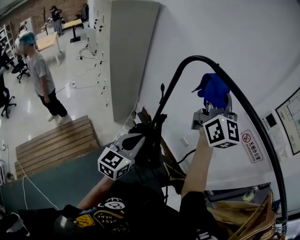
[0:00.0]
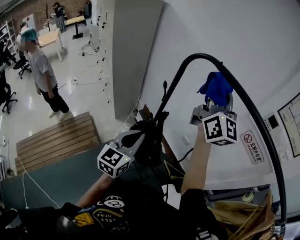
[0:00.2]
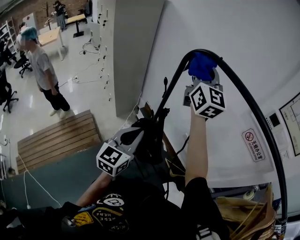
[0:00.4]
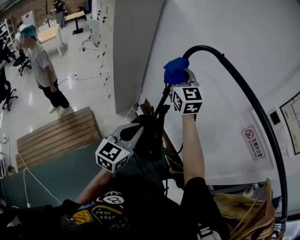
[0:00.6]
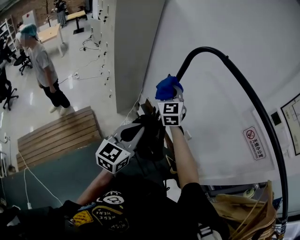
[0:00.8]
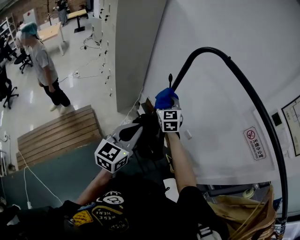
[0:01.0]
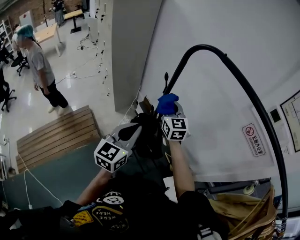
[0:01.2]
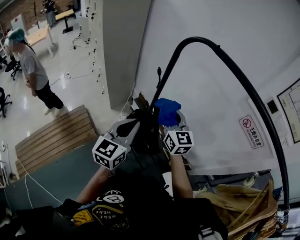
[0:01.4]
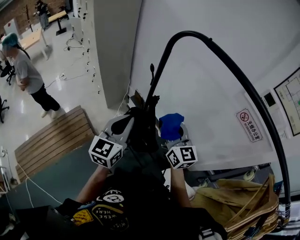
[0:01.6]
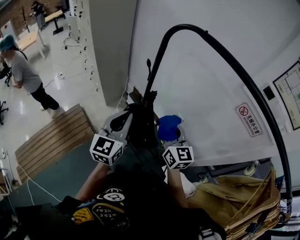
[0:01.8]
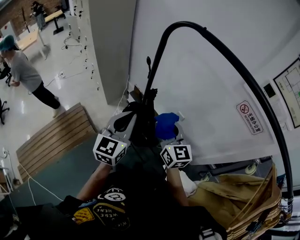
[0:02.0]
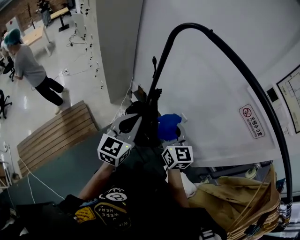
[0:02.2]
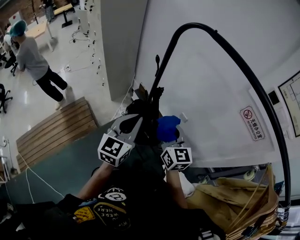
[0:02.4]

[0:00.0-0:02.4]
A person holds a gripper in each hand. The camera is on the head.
0:00.0 to 0:01.2: The right gripper moves downward, approximately 30 cm, and angles its fingers downward, by some 30 degrees.
0:01.2 to 0:02.4: The right gripper travels backward and to the right by approximately 15 cm.

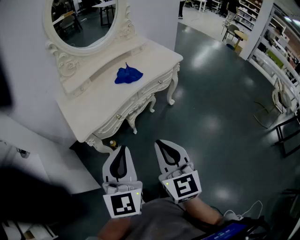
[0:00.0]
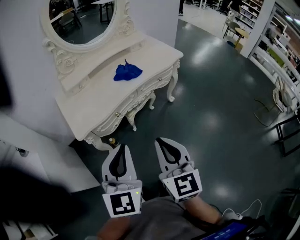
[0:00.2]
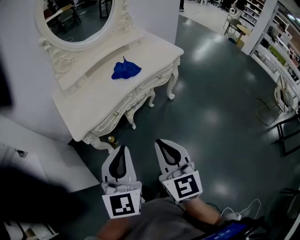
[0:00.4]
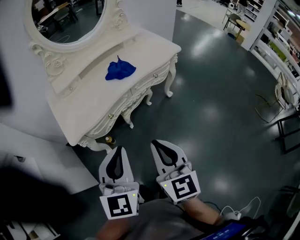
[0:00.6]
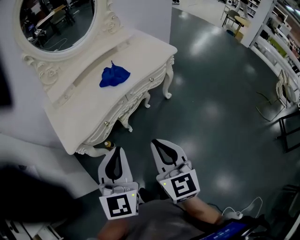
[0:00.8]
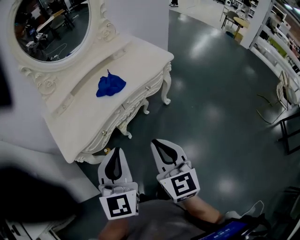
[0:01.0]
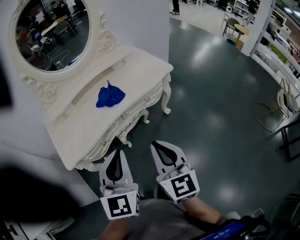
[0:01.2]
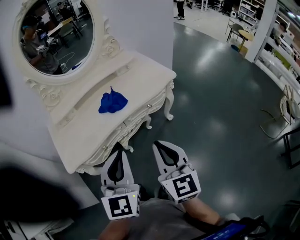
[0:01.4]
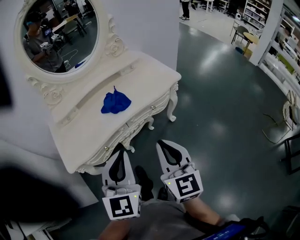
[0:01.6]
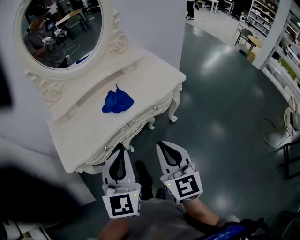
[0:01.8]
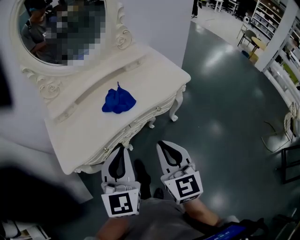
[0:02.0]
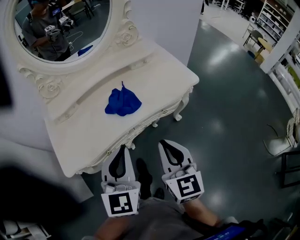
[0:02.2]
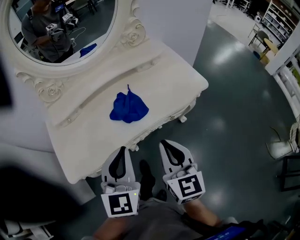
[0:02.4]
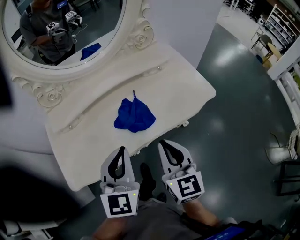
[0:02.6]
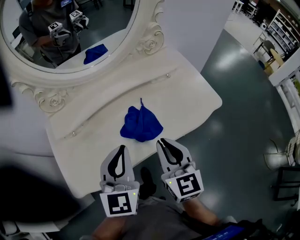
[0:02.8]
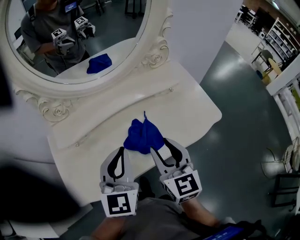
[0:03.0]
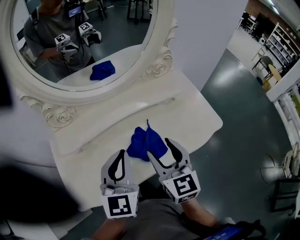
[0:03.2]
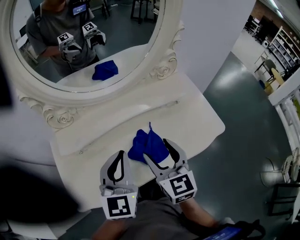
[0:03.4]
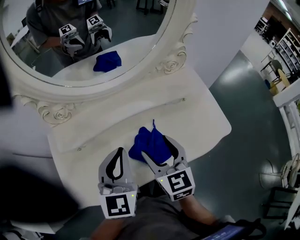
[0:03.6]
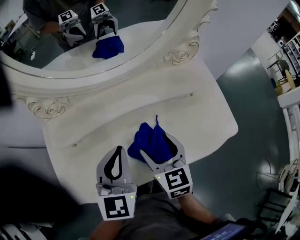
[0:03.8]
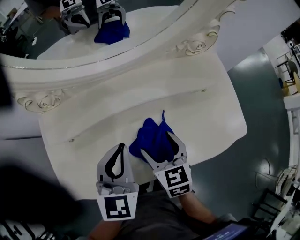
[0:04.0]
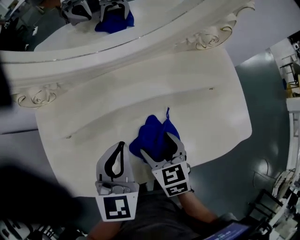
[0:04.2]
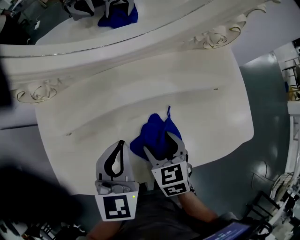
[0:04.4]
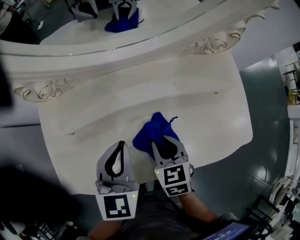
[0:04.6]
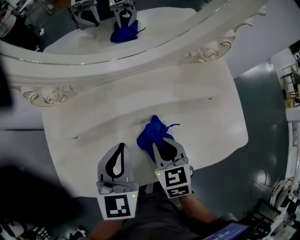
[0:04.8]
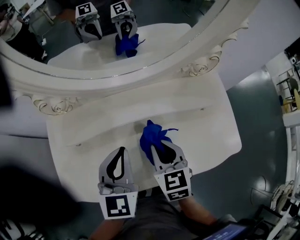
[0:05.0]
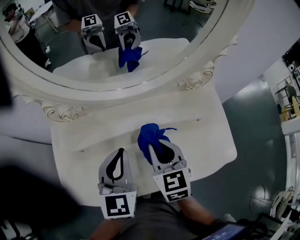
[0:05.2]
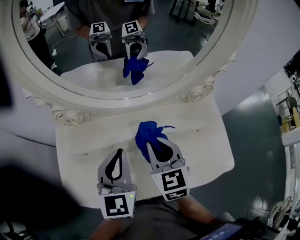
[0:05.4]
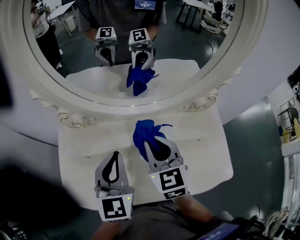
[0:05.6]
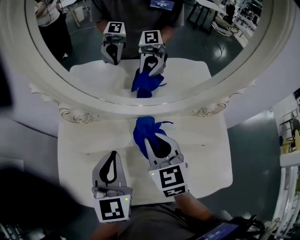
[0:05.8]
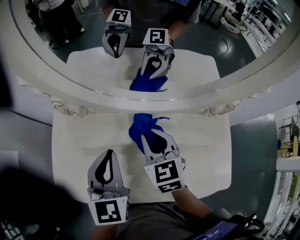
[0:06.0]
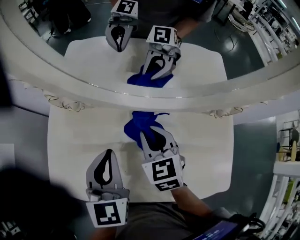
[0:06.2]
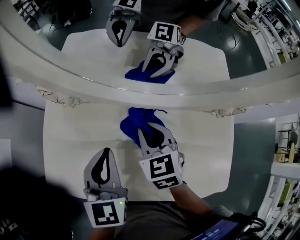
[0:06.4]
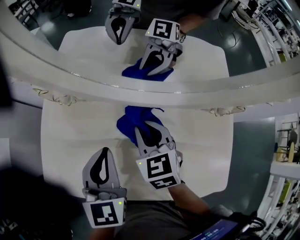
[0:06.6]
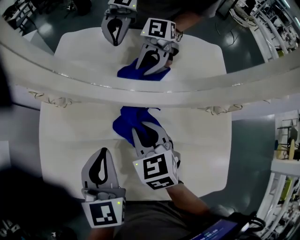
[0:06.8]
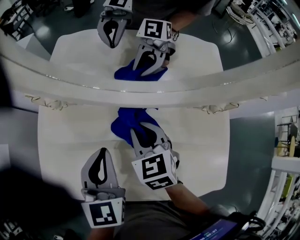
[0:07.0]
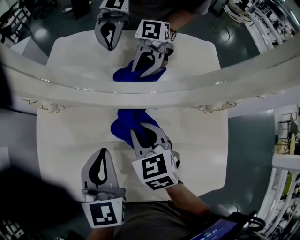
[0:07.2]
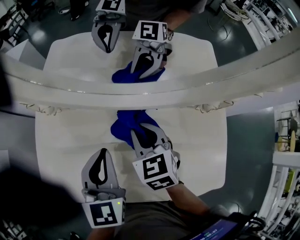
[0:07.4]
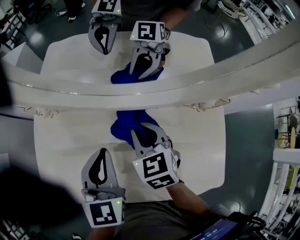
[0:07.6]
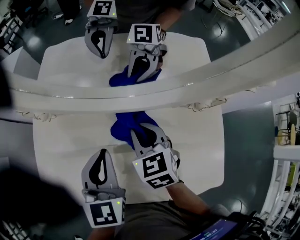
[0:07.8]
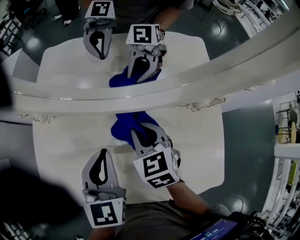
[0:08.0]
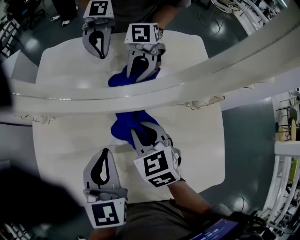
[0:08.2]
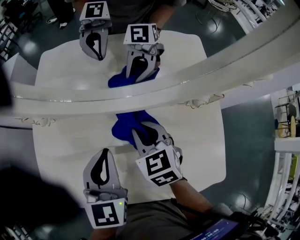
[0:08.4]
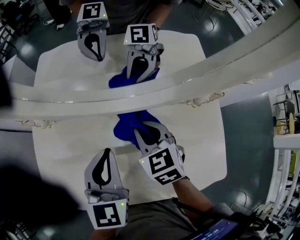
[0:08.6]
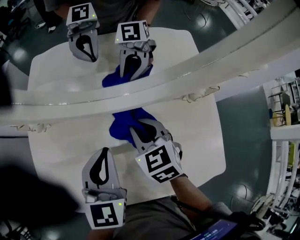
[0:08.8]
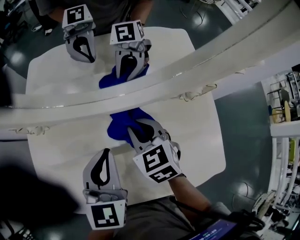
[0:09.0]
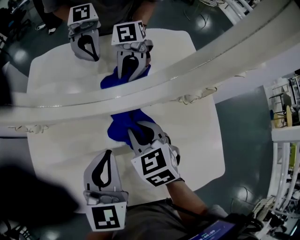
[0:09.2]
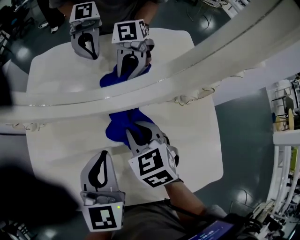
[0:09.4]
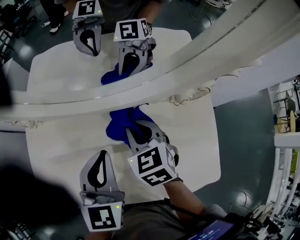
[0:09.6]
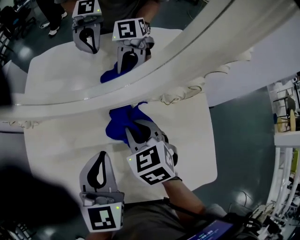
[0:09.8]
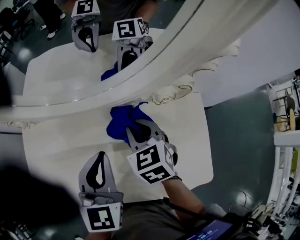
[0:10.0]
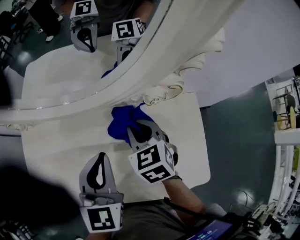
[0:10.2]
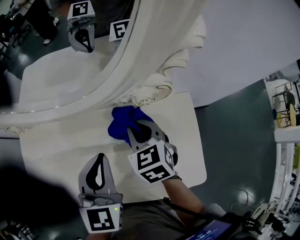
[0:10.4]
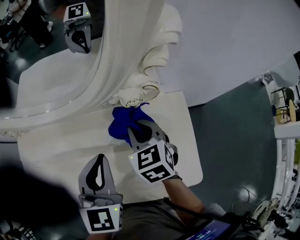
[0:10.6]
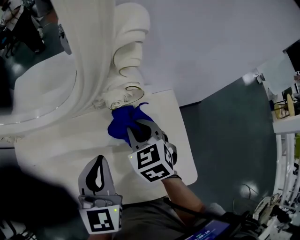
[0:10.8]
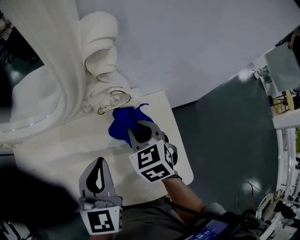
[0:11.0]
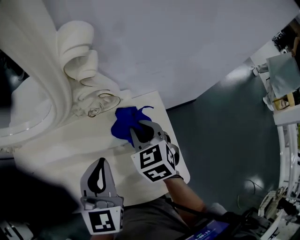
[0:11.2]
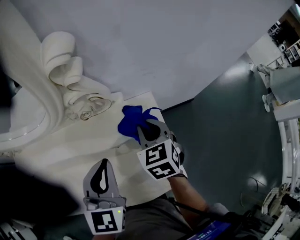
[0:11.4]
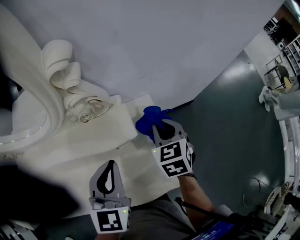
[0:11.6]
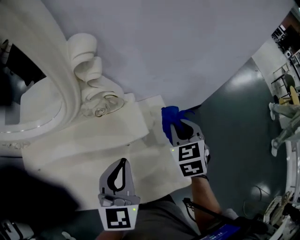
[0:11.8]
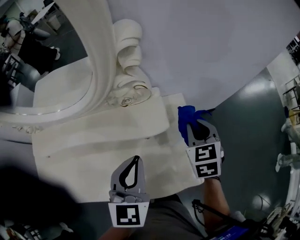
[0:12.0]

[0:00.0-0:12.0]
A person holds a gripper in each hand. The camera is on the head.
0:00.0 to 0:01.6: Both grippers move forward and to the right, approximately 25 cm.
0:01.6 to 0:03.0: Both grippers travel together forward, about 30 cm.
0:03.0 to 0:04.4: The two grippers go approximately 20 cm downward and forward. The right gripper tips its fingers downward by approximately 30 degrees, and opens up. Meanwhile the left gripper rotates roughly 20 degrees.
0:04.4 to 0:06.0: The right gripper travels forward and upward by roughly 20 cm, turns by roughly 30 degrees, and closes its fingers. Meanwhile the left gripper moves upward and forward, about 10 cm, and swivels some 20 degrees.
0:06.0 to 0:09.0: The grippers stay close to where they were, moving slightly.
0:09.0 to 0:10.4: The grippers move only a little.
0:10.4 to 0:12.0: The left gripper moves to the right, approximately 15 cm; the right gripper goes some 25 cm to the right, and changes its angle by roughly 20 degrees.

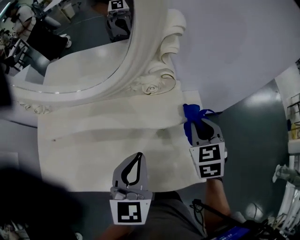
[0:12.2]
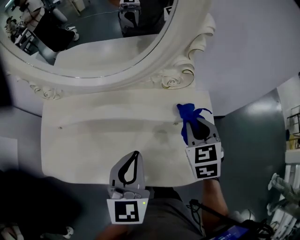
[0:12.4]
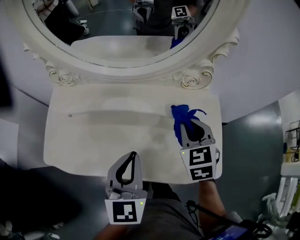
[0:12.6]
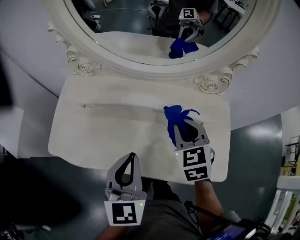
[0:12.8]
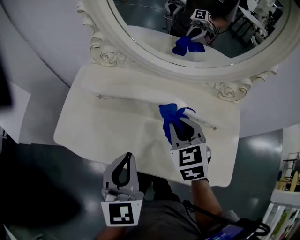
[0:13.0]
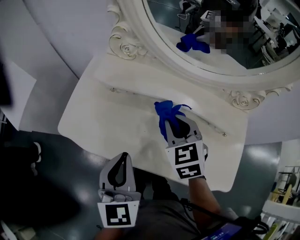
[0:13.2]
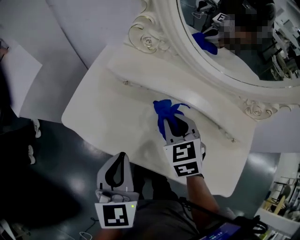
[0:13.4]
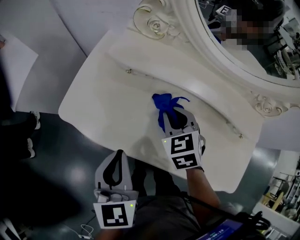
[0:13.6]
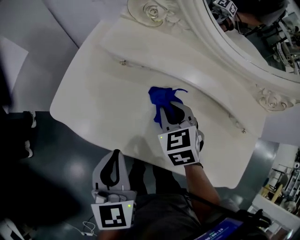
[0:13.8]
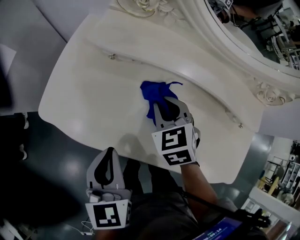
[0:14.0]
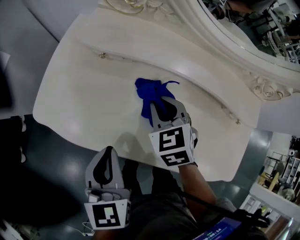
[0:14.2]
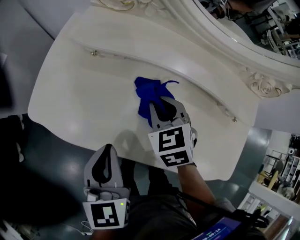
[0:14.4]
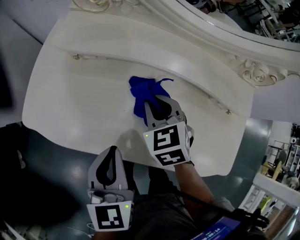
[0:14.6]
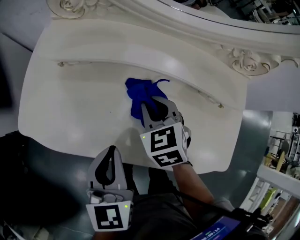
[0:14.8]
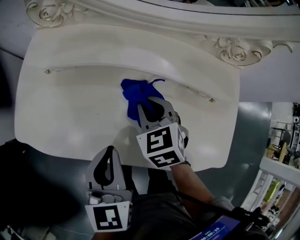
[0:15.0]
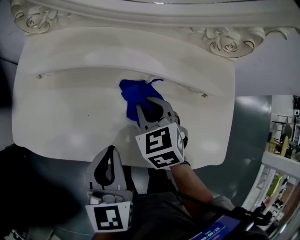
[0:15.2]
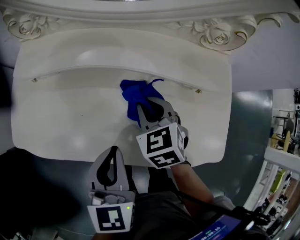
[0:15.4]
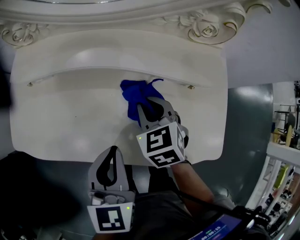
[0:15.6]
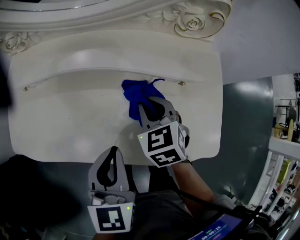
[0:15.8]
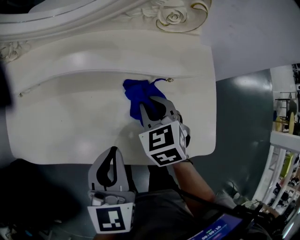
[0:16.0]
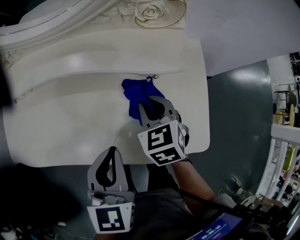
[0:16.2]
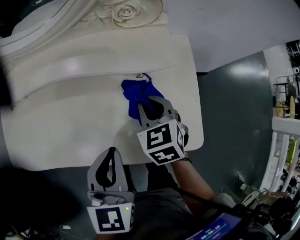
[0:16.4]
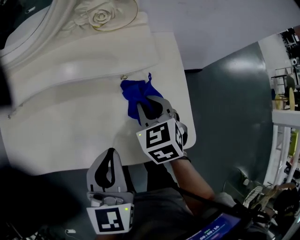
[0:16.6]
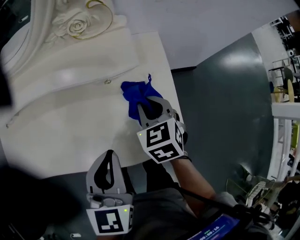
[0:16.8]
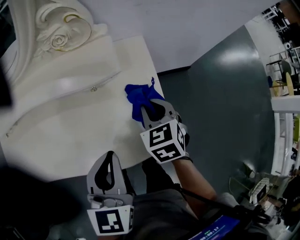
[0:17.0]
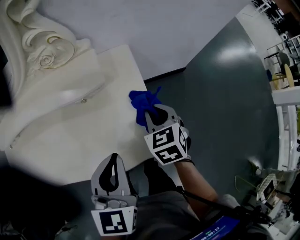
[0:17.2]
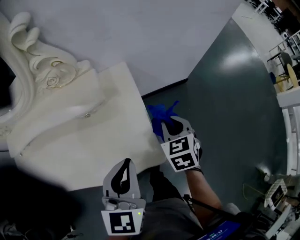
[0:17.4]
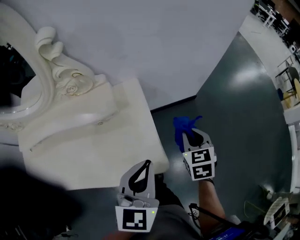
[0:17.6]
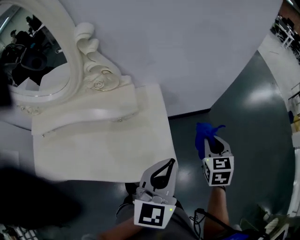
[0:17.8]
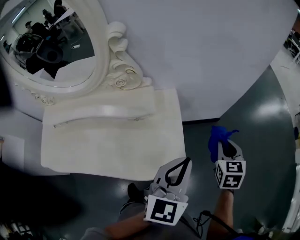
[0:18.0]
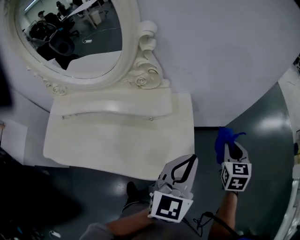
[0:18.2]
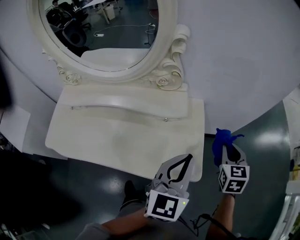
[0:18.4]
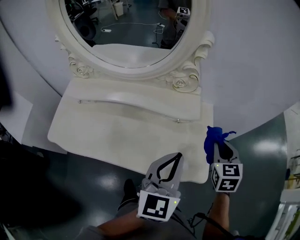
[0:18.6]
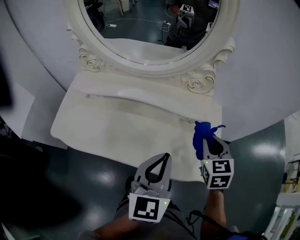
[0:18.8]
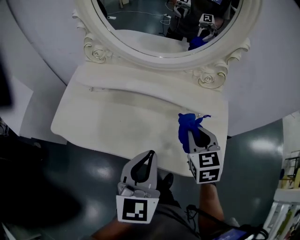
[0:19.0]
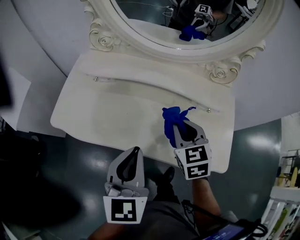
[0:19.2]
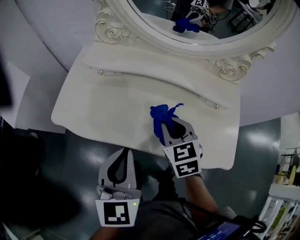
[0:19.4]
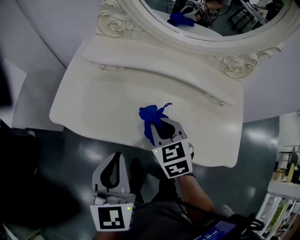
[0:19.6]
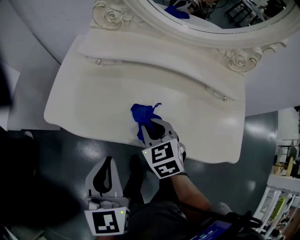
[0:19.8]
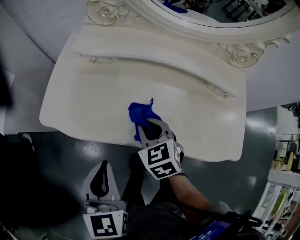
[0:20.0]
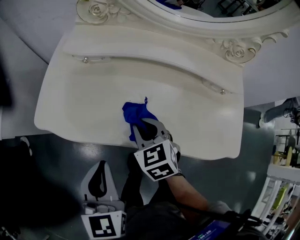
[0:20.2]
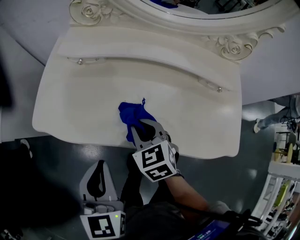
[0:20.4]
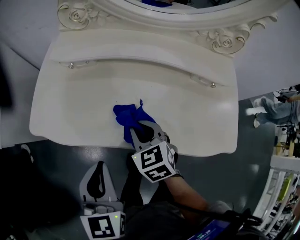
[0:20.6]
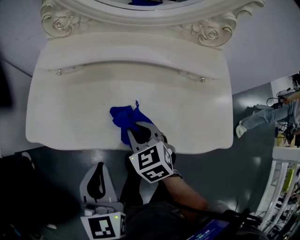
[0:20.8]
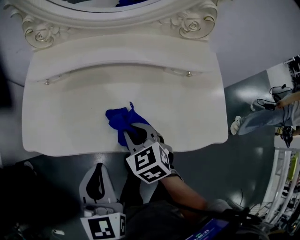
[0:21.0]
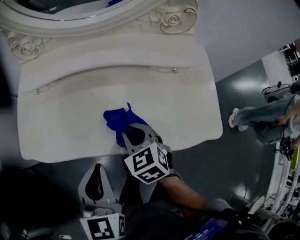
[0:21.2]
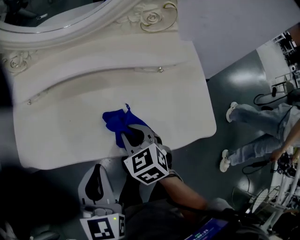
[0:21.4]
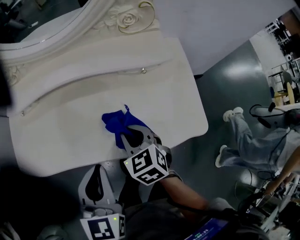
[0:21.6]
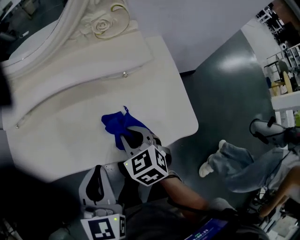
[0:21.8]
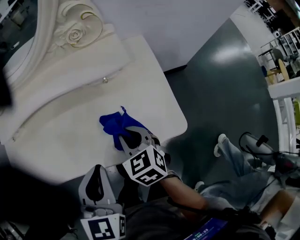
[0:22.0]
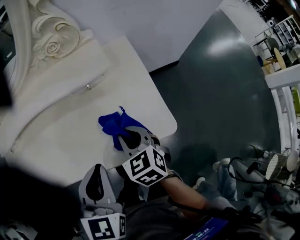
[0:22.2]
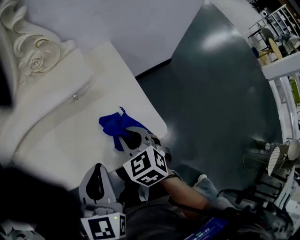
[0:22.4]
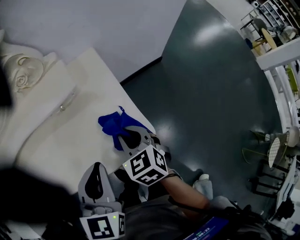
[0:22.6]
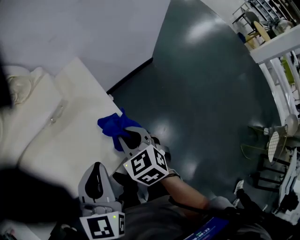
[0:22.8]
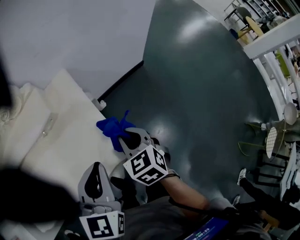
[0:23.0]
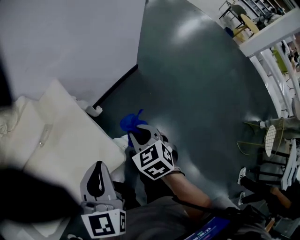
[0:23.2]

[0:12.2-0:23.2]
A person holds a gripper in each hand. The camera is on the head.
0:12.2 to 0:13.8: The two grippers travel together, approximately 40 cm. The right gripper changes its angle by roughly 40 degrees, while the left gripper swivels about 40 degrees.
0:13.8 to 0:15.4: Both grippers move to the right, approximately 20 cm. The left gripper swivels some 20 degrees.
0:15.4 to 0:17.0: Both grippers move to the right, roughly 30 cm. The right gripper turns by approximately 20 degrees.
0:17.0 to 0:18.4: Both grippers move upward and to the right, approximately 15 cm.
0:18.4 to 0:20.0: Both grippers are carried some 60 cm. The right gripper swivels about 40 degrees, while the left gripper rotates roughly 40 degrees.
0:20.0 to 0:21.6: Both grippers move to the right, about 20 cm. The left gripper changes its angle by approximately 20 degrees.
0:21.6 to 0:23.2: The left gripper moves some 40 cm, and changes its angle by some 30 degrees, while the right gripper shifts by about 40 cm, and rotates approximately 30 degrees.
